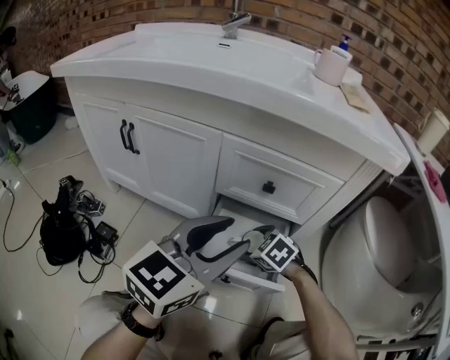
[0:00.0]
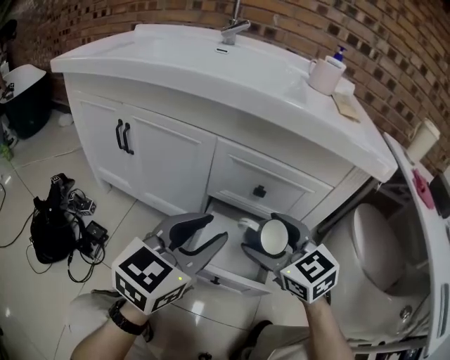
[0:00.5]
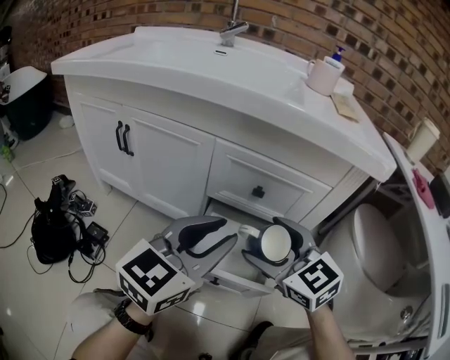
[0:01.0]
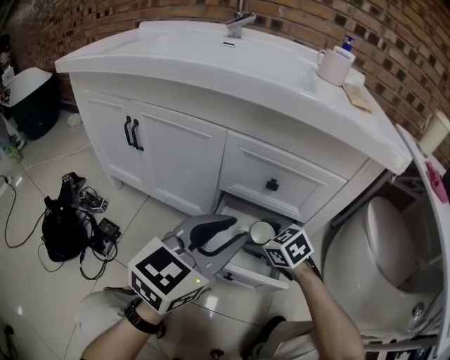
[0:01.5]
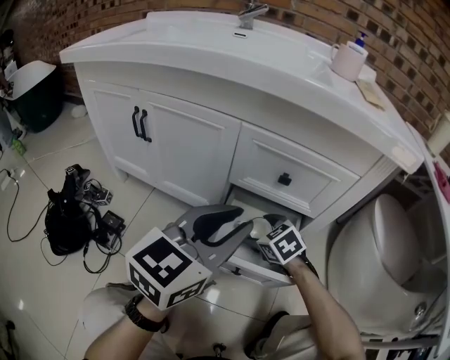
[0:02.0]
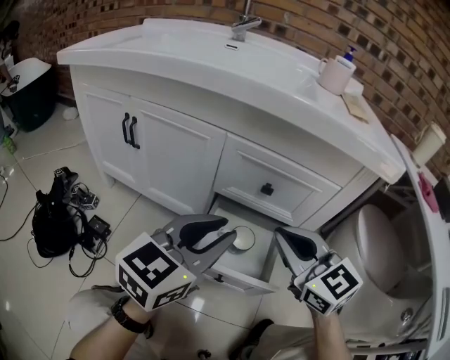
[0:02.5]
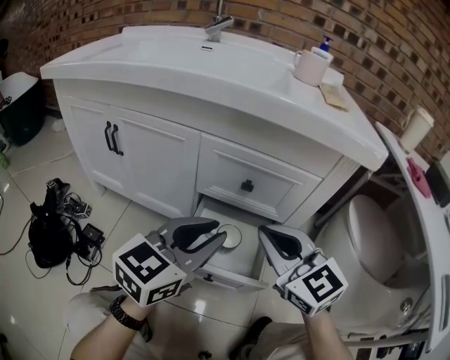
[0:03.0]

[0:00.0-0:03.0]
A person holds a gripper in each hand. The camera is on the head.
0:00.0 to 0:01.5: The right gripper goes upward and returns, roughly 20 cm each way.
0:01.5 to 0:03.0: The right gripper heads upward, covering about 20 cm, tips its fingers upward by approximately 30 degrees, and closes.

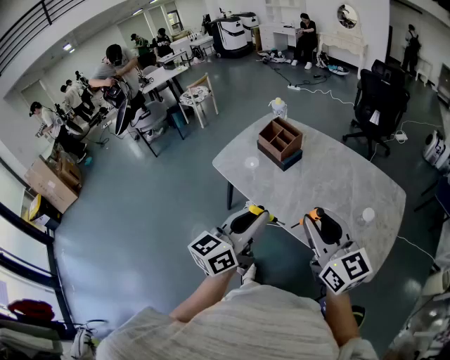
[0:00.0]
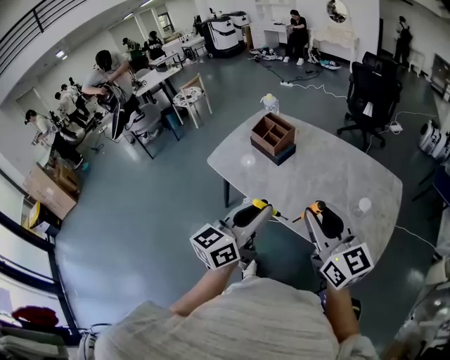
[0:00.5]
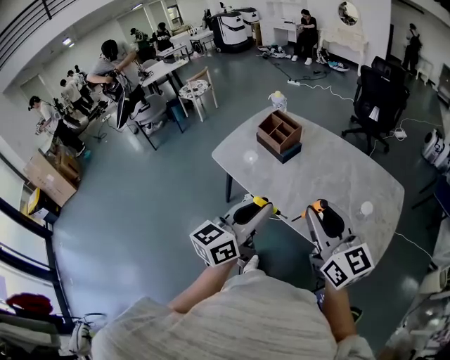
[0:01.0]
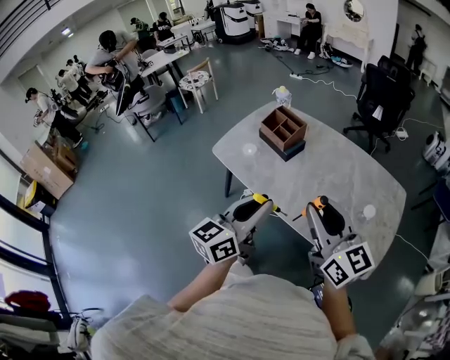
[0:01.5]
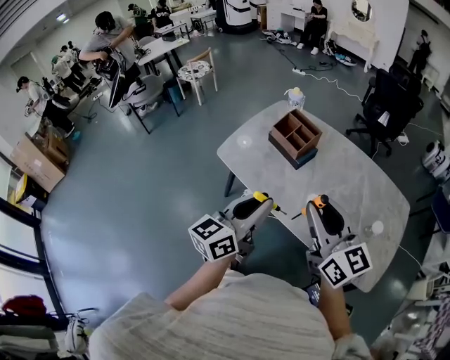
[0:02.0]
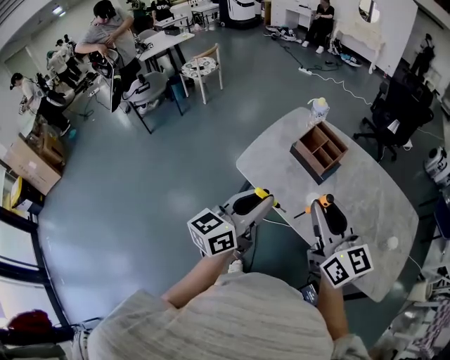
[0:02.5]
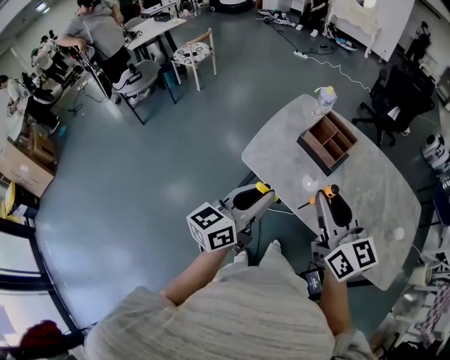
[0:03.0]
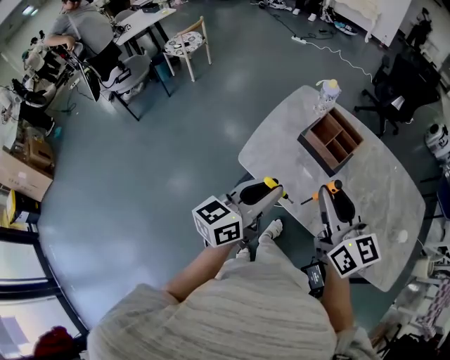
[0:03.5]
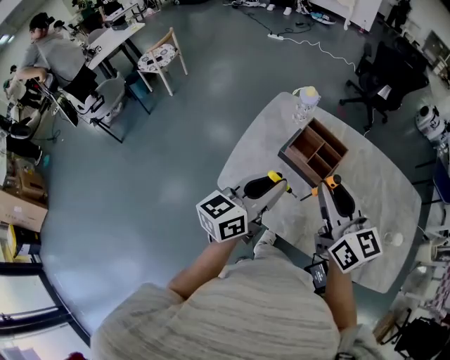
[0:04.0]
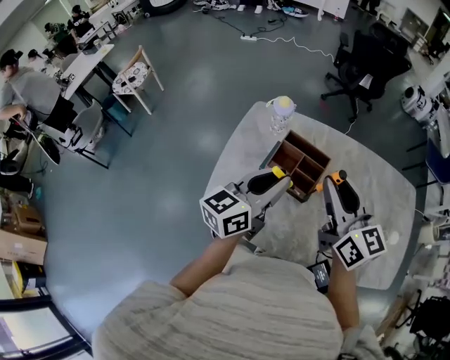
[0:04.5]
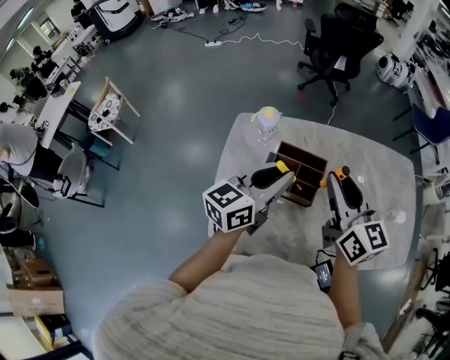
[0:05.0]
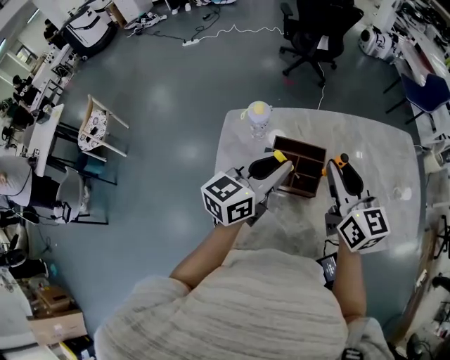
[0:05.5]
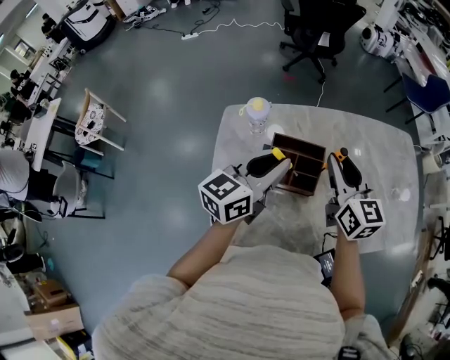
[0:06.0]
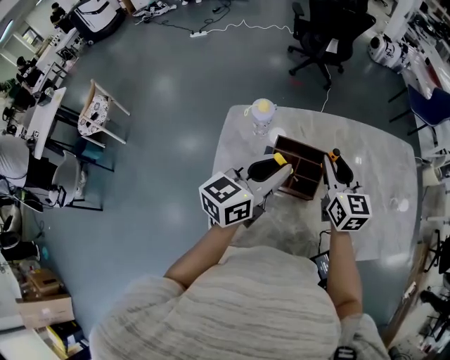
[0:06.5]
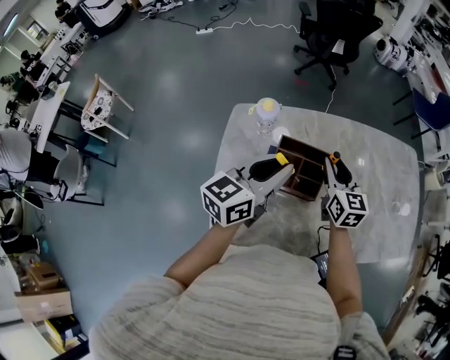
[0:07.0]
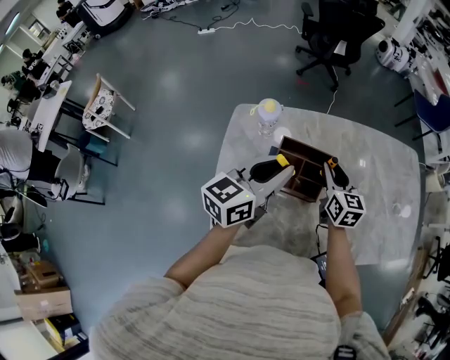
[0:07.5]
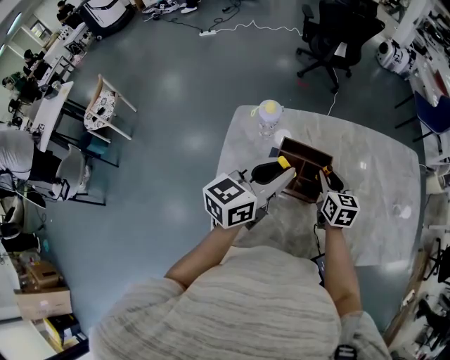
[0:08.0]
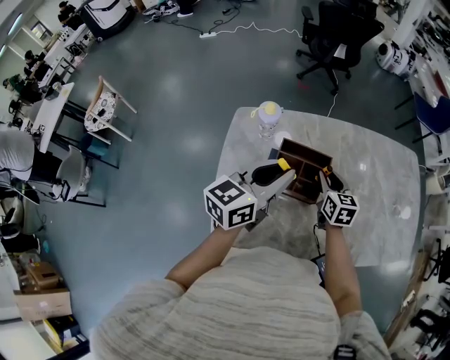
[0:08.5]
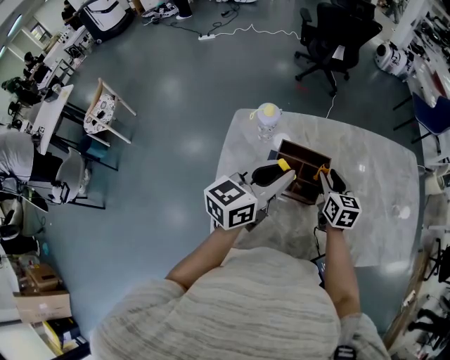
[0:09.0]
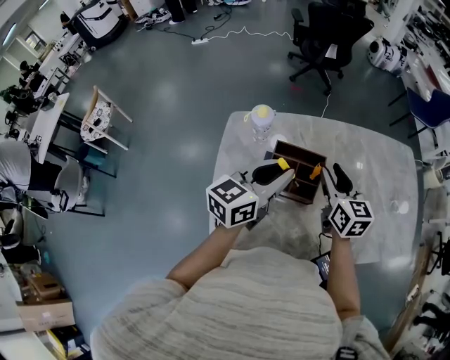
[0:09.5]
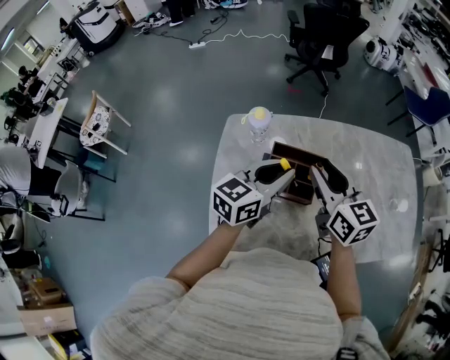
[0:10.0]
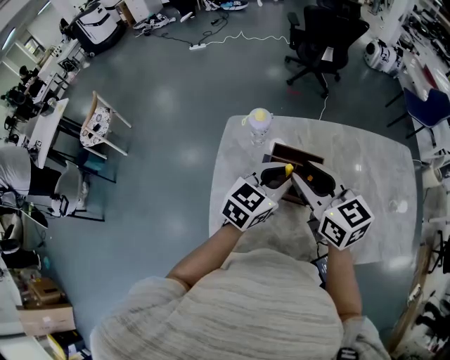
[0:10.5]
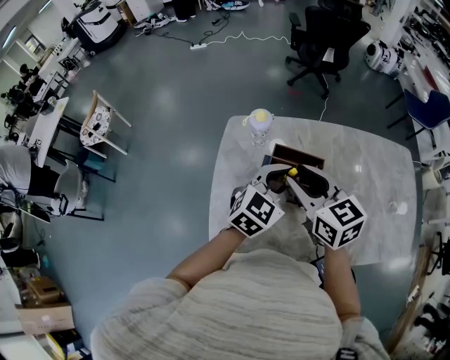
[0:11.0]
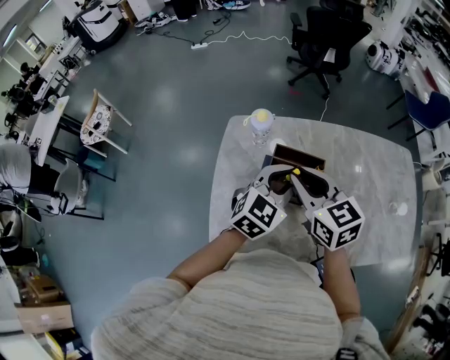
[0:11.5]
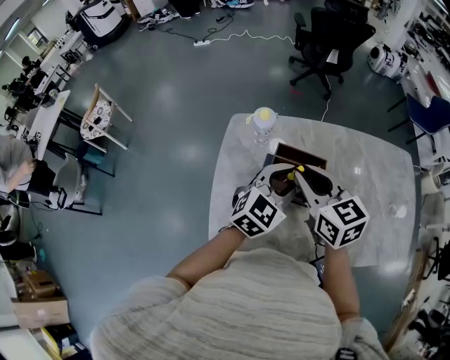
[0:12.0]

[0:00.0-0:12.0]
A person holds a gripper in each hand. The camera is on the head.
0:00.0 to 0:02.0: The left gripper heads forward and to the left, covering roughly 15 cm; the right gripper goes some 15 cm to the left and forward.
0:02.0 to 0:04.0: The grippers both shift forward and to the left by approximately 35 cm.
0:04.0 to 0:06.0: The left gripper ends up some 25 cm from where it was, and swivels approximately 30 degrees, while the right gripper shifts by some 25 cm, and rotates some 40 degrees.
0:06.0 to 0:08.0: The right gripper goes some 15 cm downward.
0:08.0 to 0:10.0: The right gripper is displaced upward by some 20 cm, and turns by some 20 degrees.
0:10.0 to 0:12.0: The left gripper swivels roughly 30 degrees, while the right gripper travels to the left by some 5 cm.

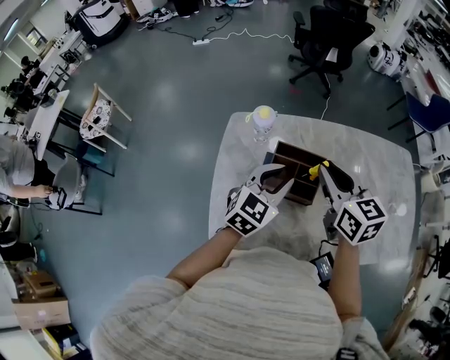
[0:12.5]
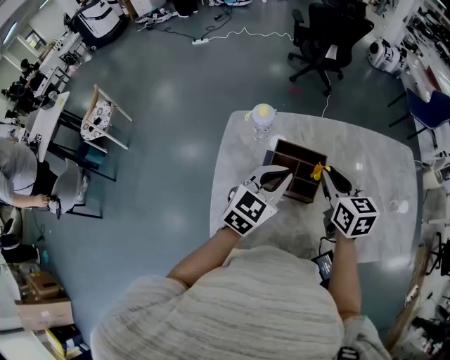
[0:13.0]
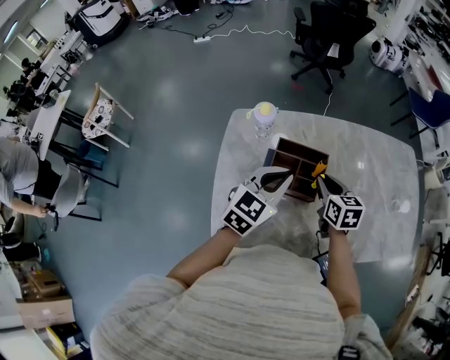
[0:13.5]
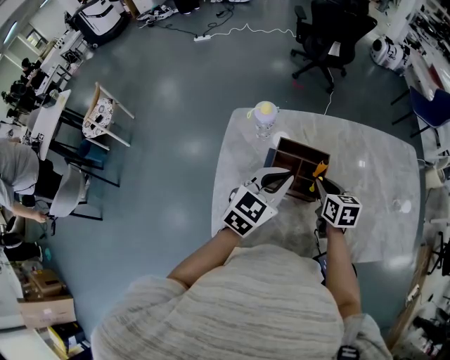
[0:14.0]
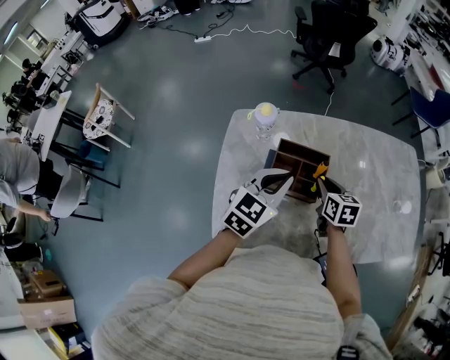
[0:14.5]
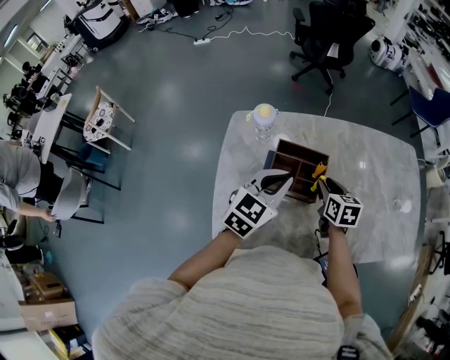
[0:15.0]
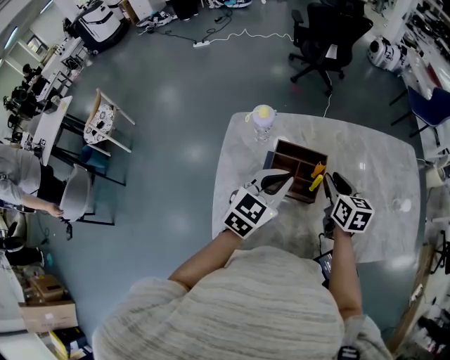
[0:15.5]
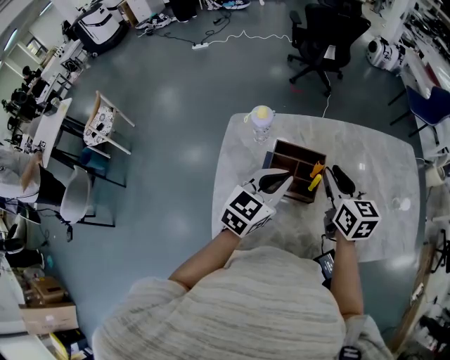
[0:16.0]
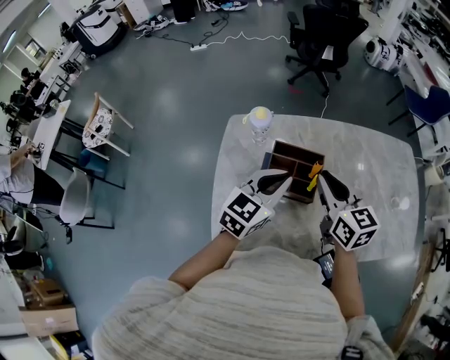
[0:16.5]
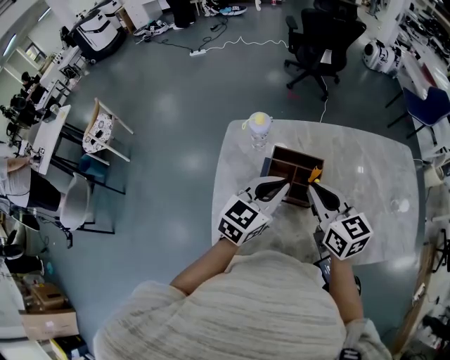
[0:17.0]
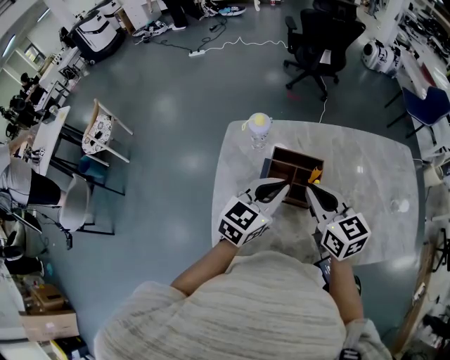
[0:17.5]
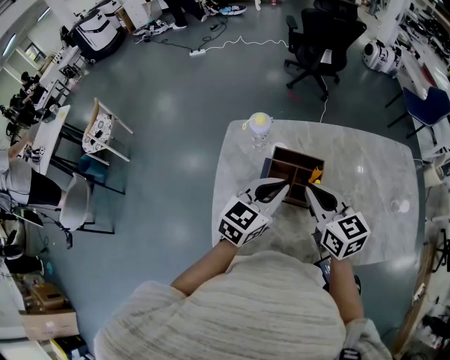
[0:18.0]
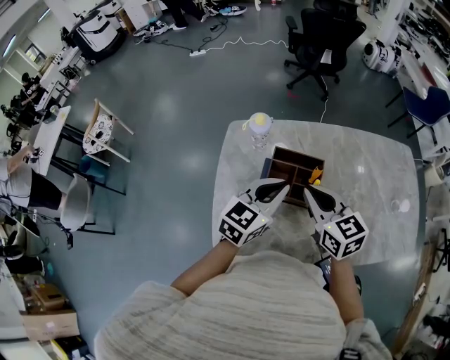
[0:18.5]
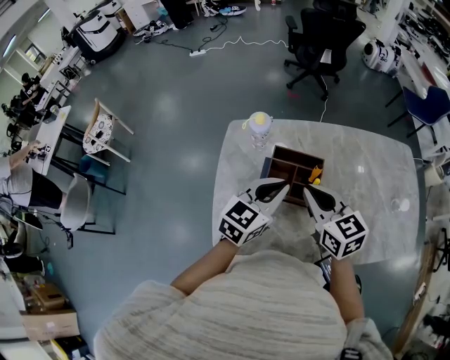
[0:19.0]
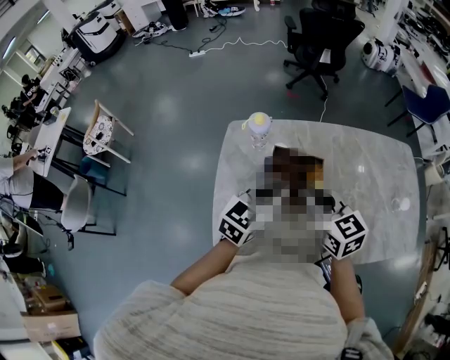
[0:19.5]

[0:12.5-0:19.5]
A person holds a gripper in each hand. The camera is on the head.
0:12.5 to 0:14.5: The right gripper goes about 20 cm downward, and turns by about 20 degrees. The left gripper closes its fingers.
0:14.5 to 0:16.0: The right gripper moves upward, about 15 cm.
0:16.0 to 0:17.5: The right gripper shifts some 10 cm to the left and backward.
0:17.5 to 0:19.5: Both grippers stay about where they are.

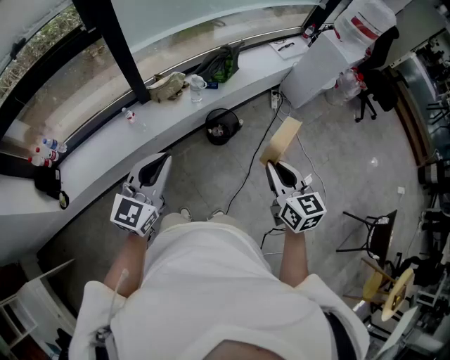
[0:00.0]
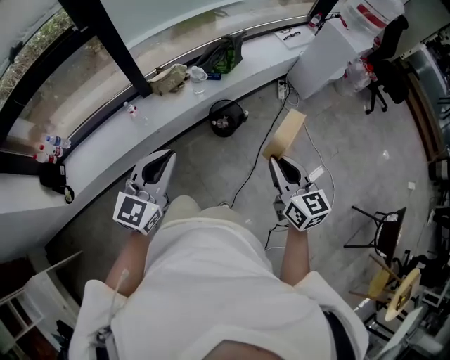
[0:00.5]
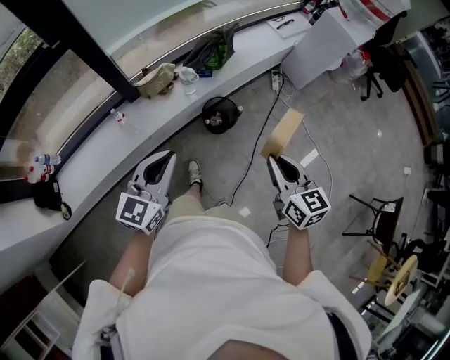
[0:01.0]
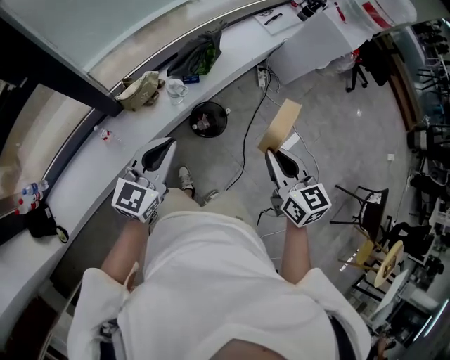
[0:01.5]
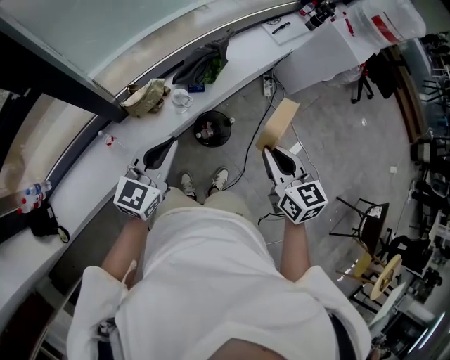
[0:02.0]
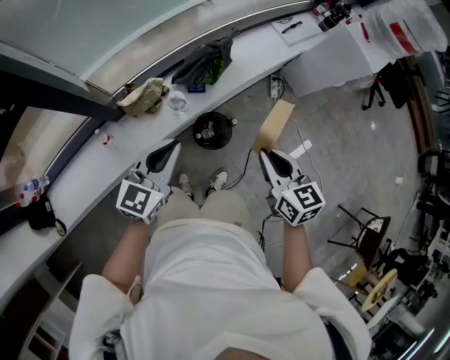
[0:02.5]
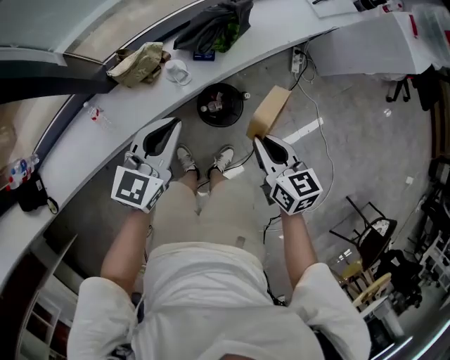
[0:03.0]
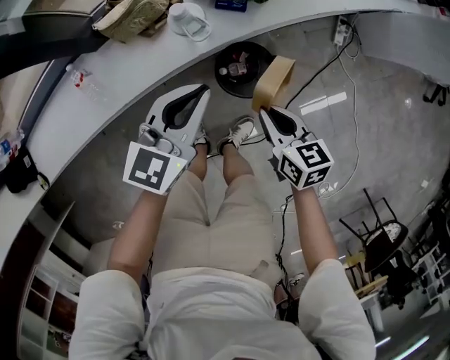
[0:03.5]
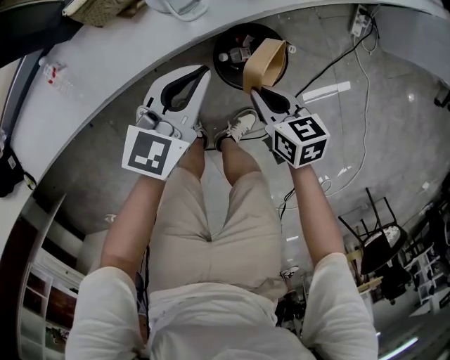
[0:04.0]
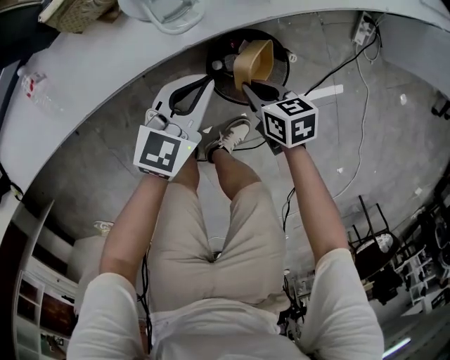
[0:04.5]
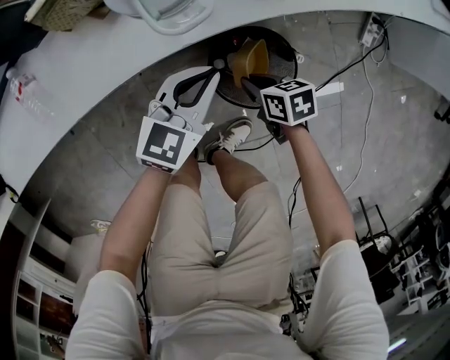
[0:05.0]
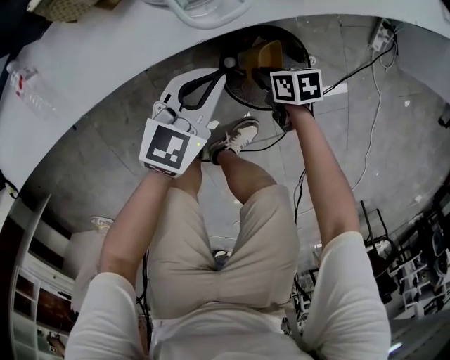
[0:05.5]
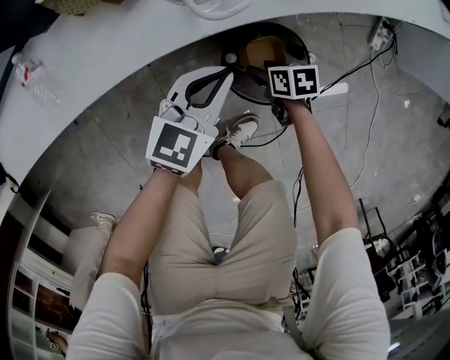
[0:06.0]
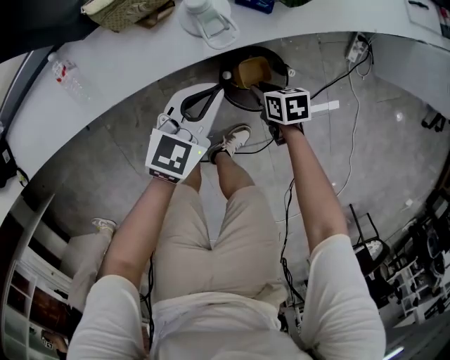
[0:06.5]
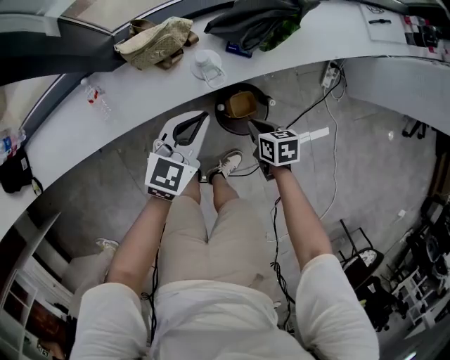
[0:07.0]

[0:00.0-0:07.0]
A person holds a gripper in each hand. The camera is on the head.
0:00.0 to 0:02.0: The grippers both shift forward by about 30 cm.
0:02.0 to 0:03.5: The grippers both shift downward by about 35 cm. The right gripper turns by approximately 30 degrees.
0:03.5 to 0:05.0: Both grippers travel together downward, about 30 cm. The right gripper rotates about 30 degrees.
0:05.0 to 0:07.0: Both grippers move upward, approximately 25 cm. The right gripper opens, then closes again.
